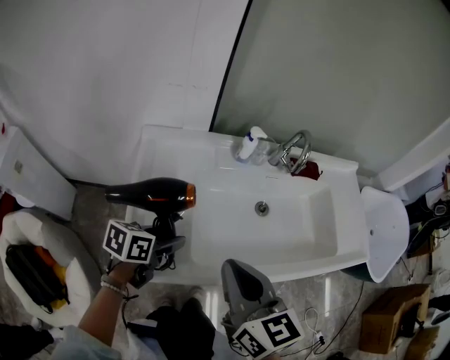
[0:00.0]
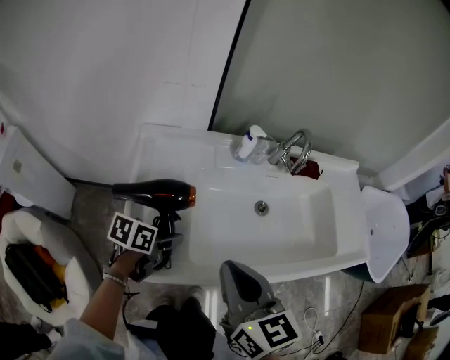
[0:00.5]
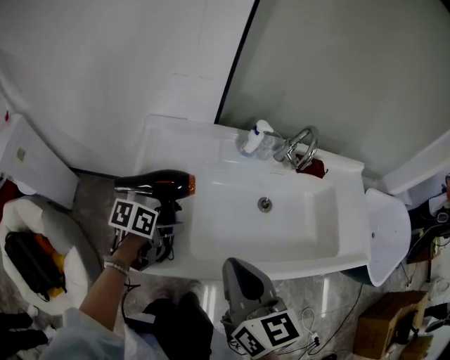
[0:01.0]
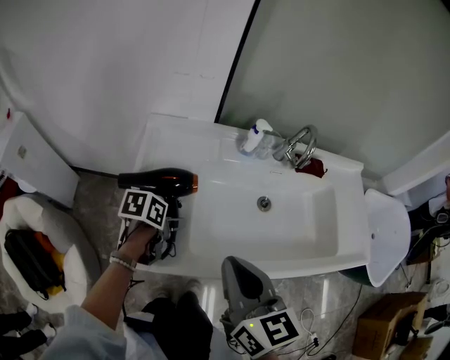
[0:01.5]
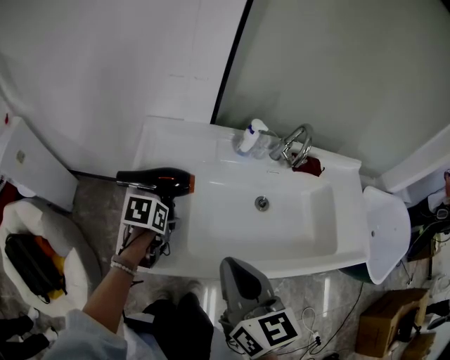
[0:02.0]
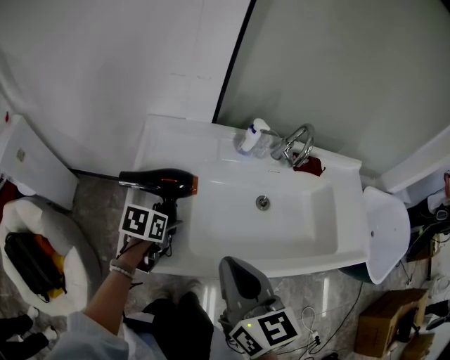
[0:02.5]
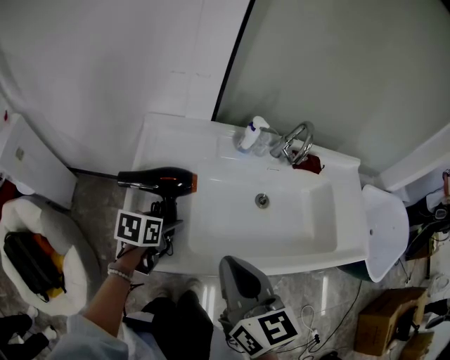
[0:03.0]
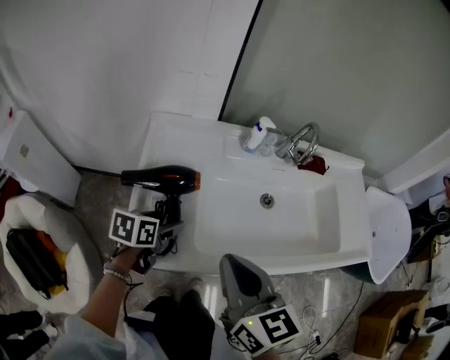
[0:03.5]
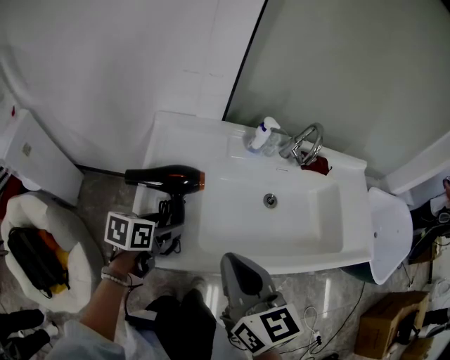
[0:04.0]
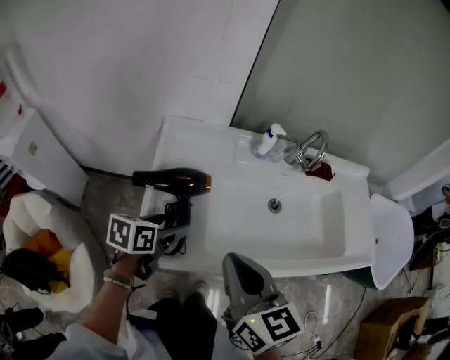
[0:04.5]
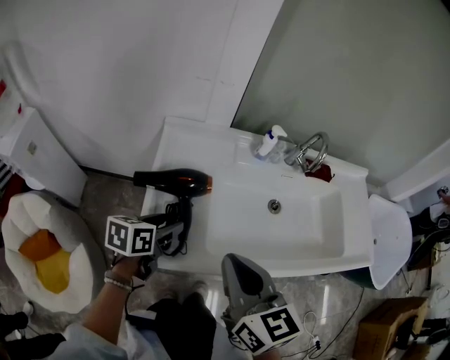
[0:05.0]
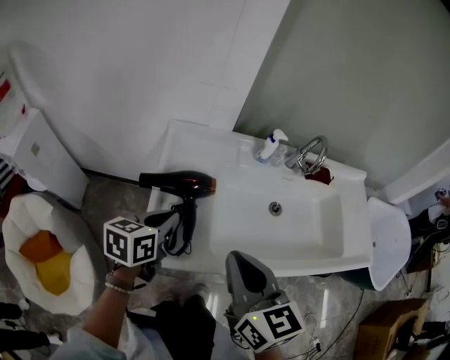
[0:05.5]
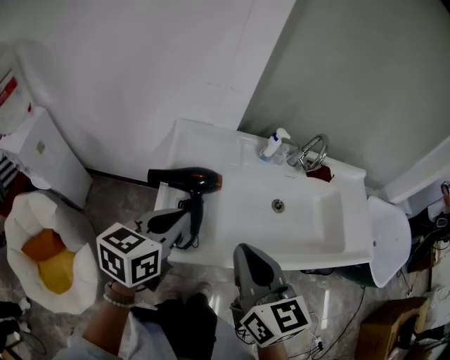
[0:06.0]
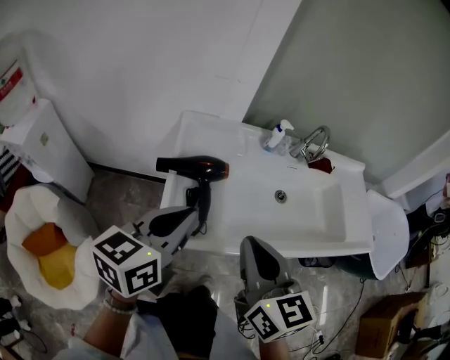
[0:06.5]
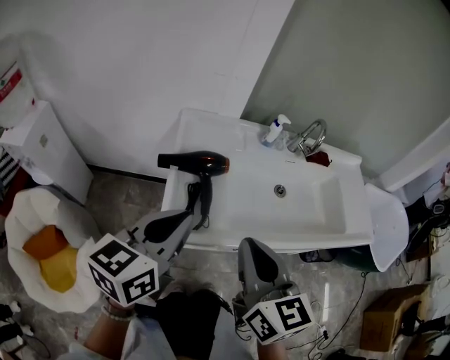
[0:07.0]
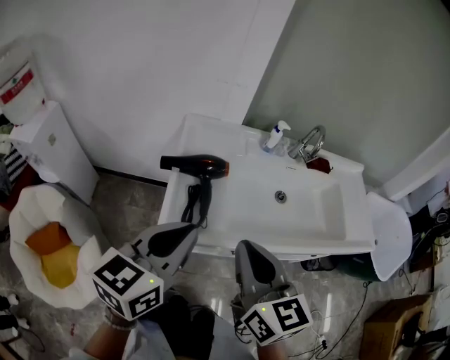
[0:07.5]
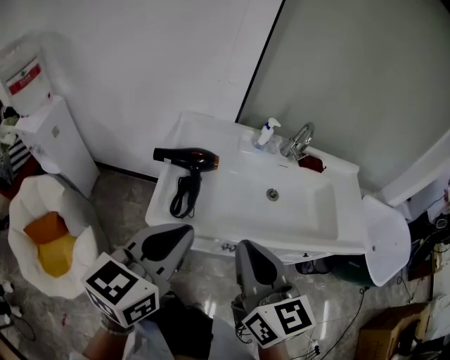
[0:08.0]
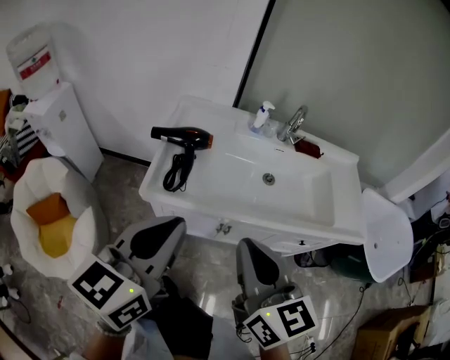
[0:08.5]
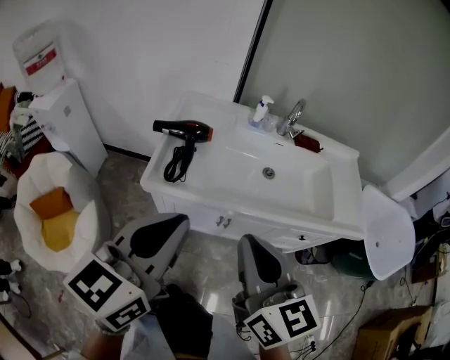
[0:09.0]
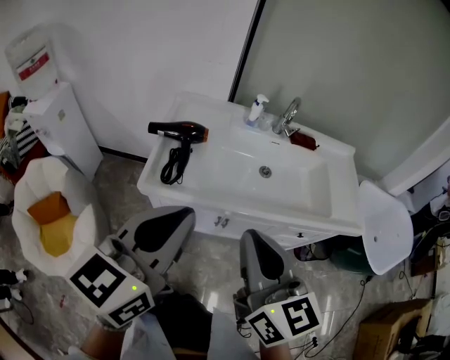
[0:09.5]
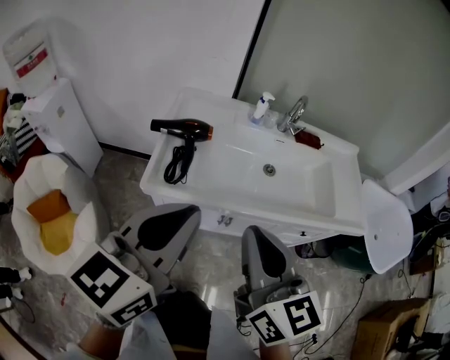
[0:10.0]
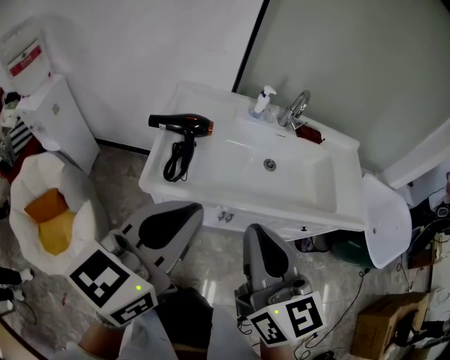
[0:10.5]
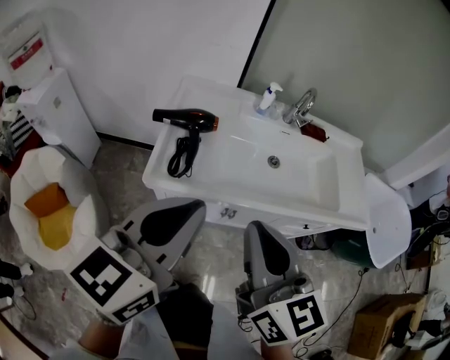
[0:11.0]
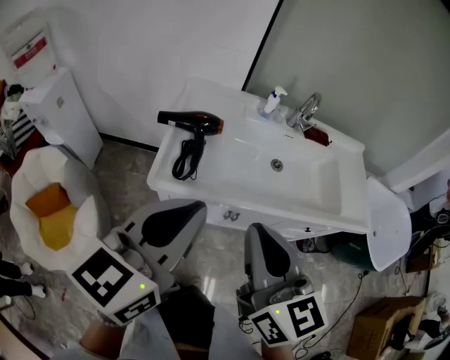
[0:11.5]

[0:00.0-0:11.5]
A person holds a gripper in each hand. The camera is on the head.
0:00.0 to 0:02.0: The left gripper goes approximately 5 cm downward, and changes its angle by roughly 30 degrees.
0:02.0 to 0:04.0: The left gripper ends up about 5 cm from where it was.
0:04.0 to 0:06.0: The left gripper heads upward, covering approximately 15 cm, turns by approximately 30 degrees, and closes up; the right gripper shifts by approximately 5 cm.
0:06.0 to 0:07.5: The left gripper goes approximately 15 cm backward and upward. The right gripper travels backward by some 5 cm.
0:07.5 to 0:09.5: The left gripper is displaced backward, to the right and upward by roughly 20 cm. The right gripper moves to the right and backward, some 15 cm.
0:09.5 to 0:11.5: The left gripper shifts by roughly 5 cm. Meanwhile the right gripper moves to the left, approximately 5 cm.

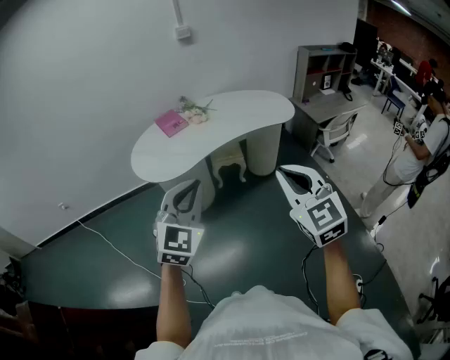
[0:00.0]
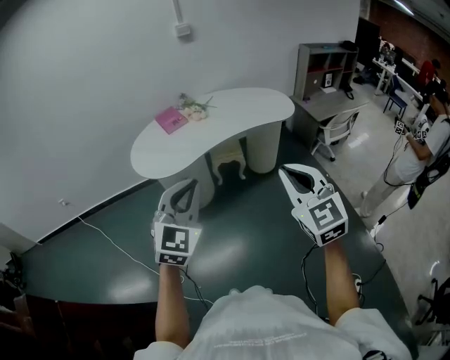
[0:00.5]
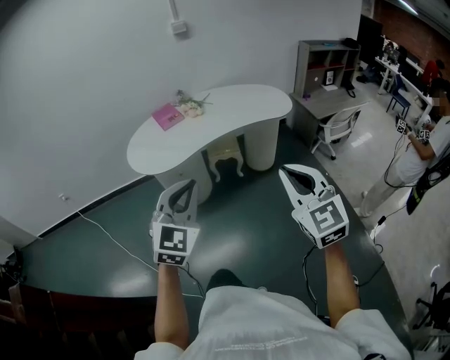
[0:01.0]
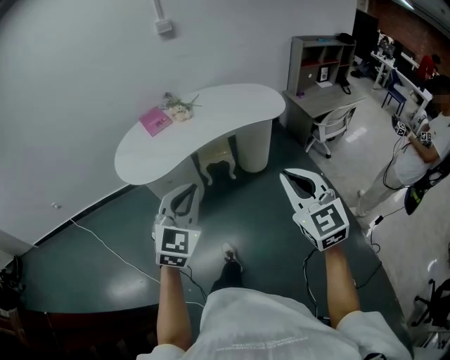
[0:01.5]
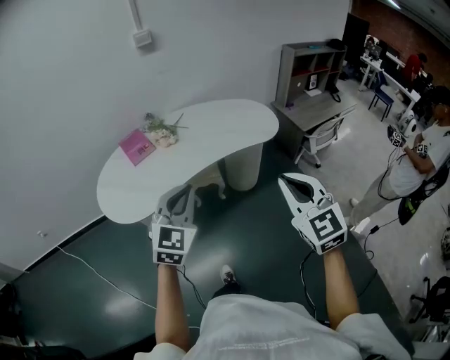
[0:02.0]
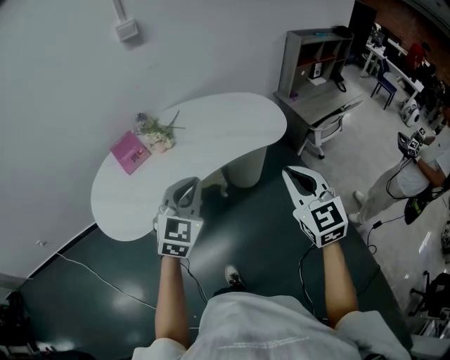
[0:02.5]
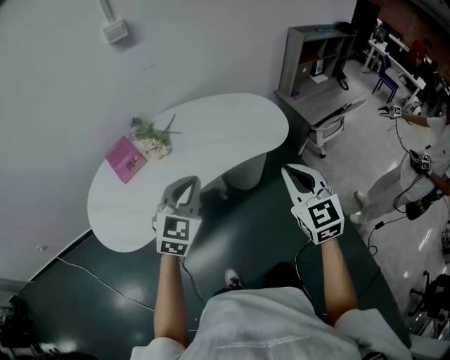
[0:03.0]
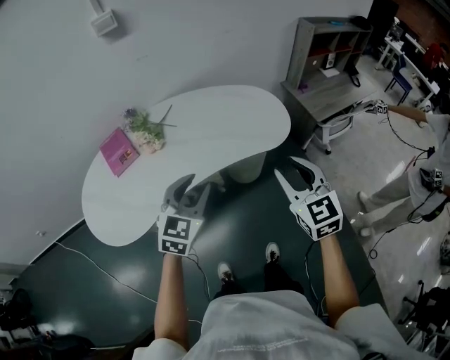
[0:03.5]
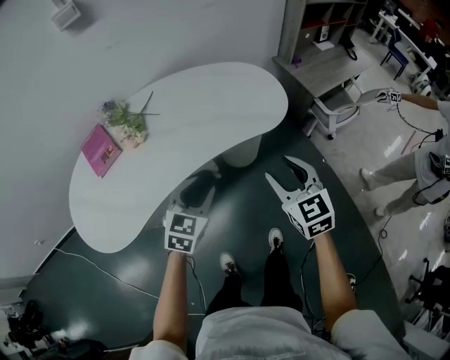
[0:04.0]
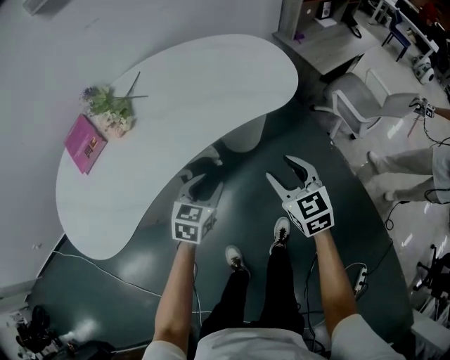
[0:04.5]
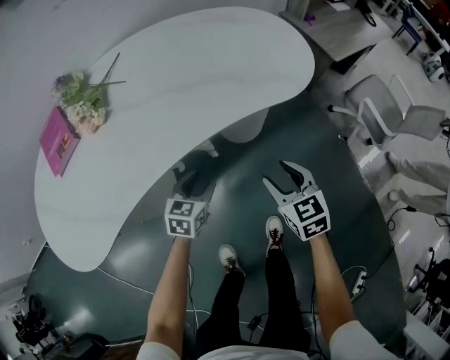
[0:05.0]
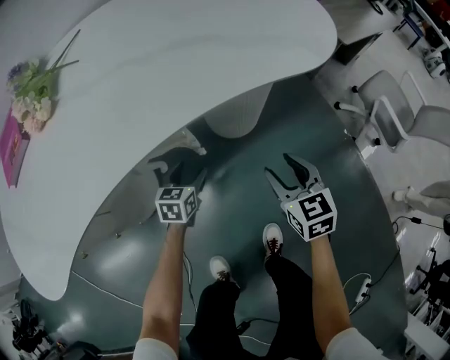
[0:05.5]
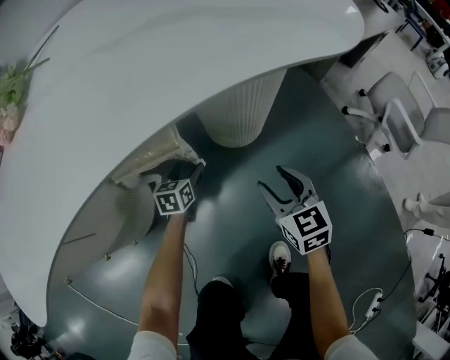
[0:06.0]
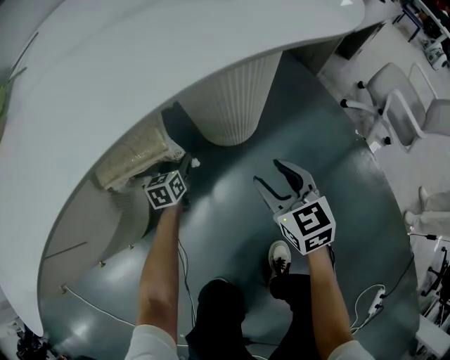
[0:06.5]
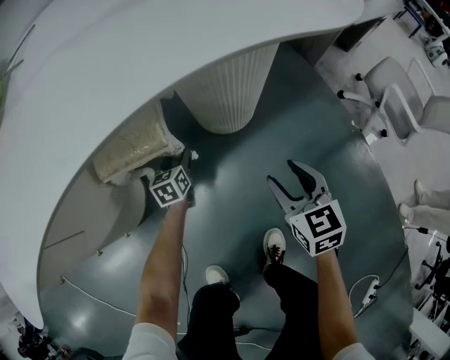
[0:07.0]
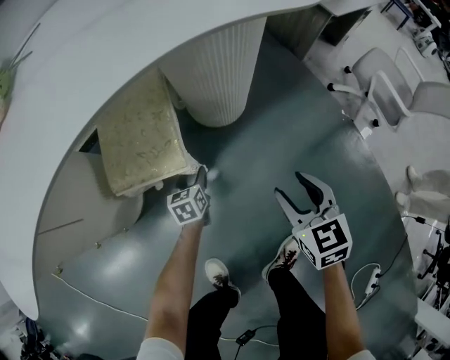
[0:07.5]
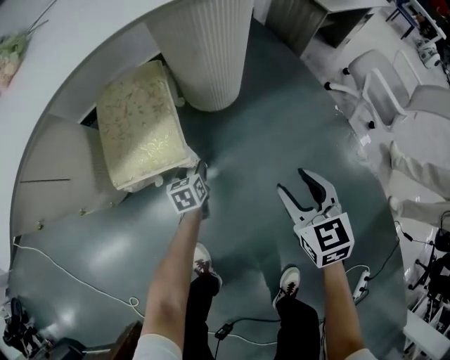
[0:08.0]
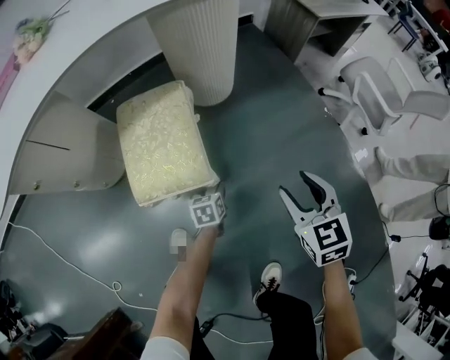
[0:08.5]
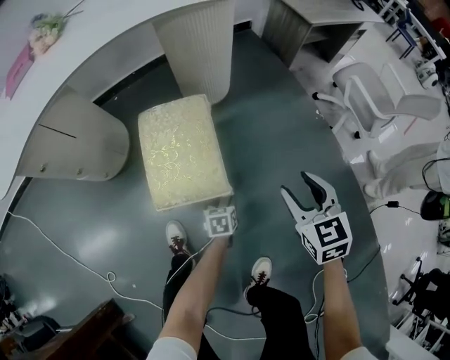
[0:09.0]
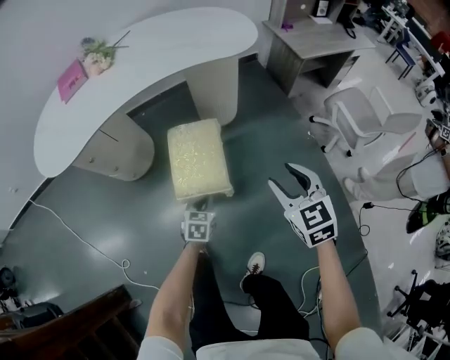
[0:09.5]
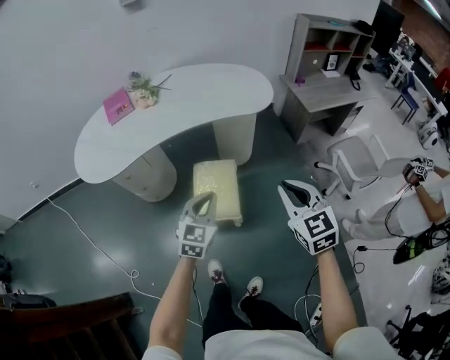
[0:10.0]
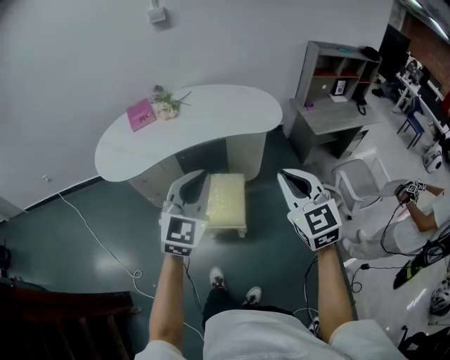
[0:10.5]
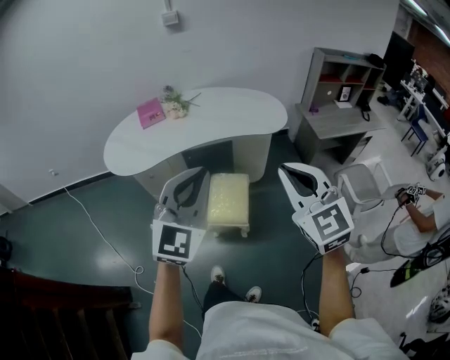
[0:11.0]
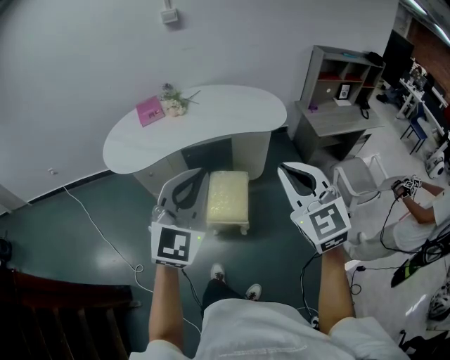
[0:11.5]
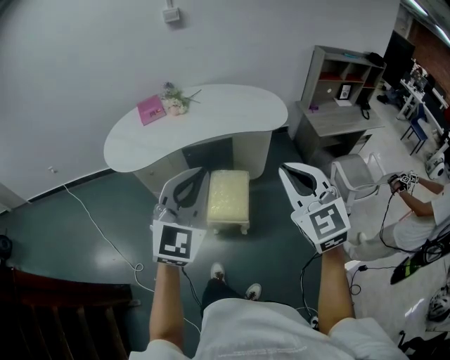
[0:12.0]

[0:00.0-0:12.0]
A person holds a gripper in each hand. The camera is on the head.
0:00.0 to 0:02.0: The right gripper travels forward and to the right by roughly 25 cm; the left gripper moves forward, about 25 cm.
0:02.0 to 0:04.0: Both grippers travel together forward and downward, approximately 35 cm. The left gripper swivels some 30 degrees, and opens its fingers. Meanwhile the right gripper turns by approximately 20 degrees, and opens up.
0:04.0 to 0:06.0: Both grippers travel together downward, roughly 60 cm. The left gripper turns by roughly 30 degrees, and opens.
0:06.0 to 0:08.0: The right gripper is displaced backward and to the right by some 20 cm. The left gripper goes approximately 20 cm backward.
0:08.0 to 0:10.0: The left gripper travels upward and backward by some 70 cm, turns by roughly 40 degrees, and closes its fingers. The right gripper is displaced upward by about 50 cm, turns by some 20 degrees, and closes its fingers.
0:10.0 to 0:12.0: Both grippers move upward, about 25 cm. The left gripper rotates roughly 30 degrees. The right gripper turns by about 20 degrees.

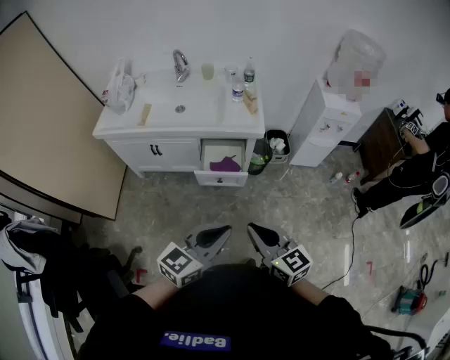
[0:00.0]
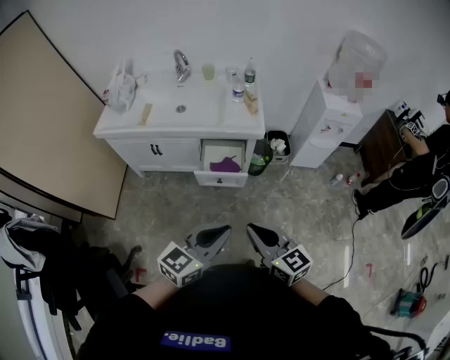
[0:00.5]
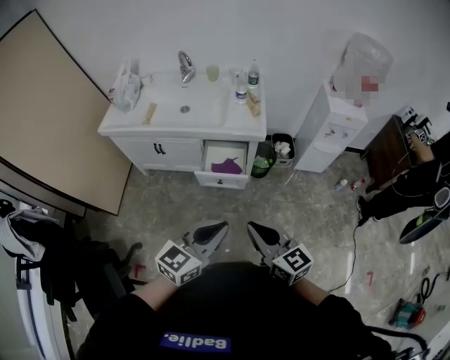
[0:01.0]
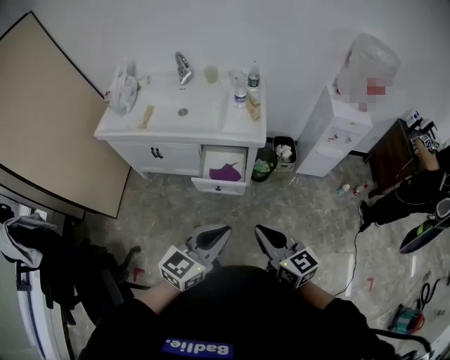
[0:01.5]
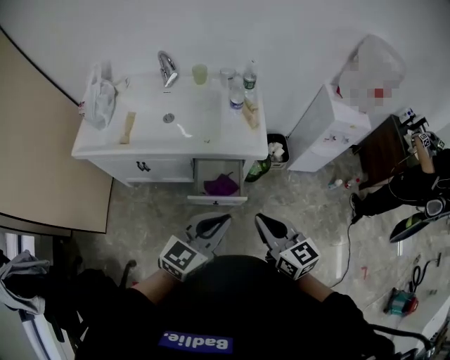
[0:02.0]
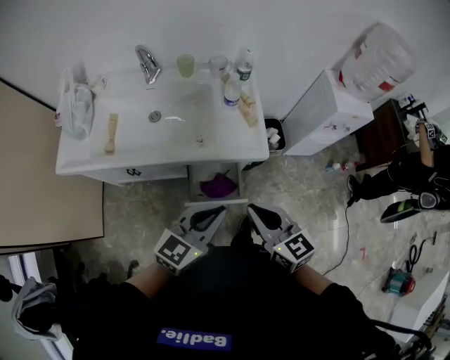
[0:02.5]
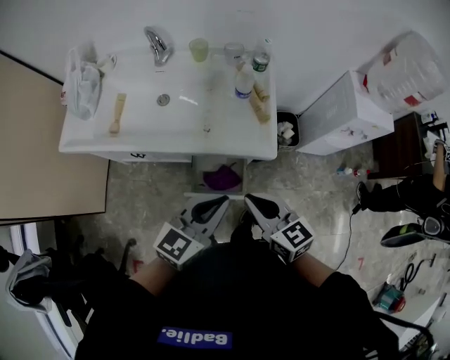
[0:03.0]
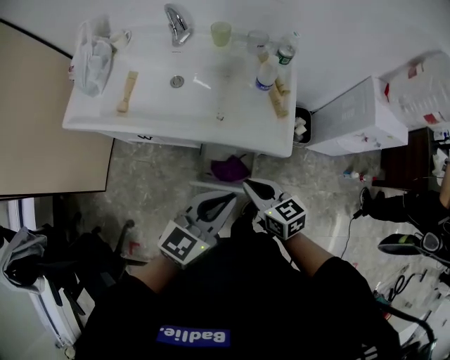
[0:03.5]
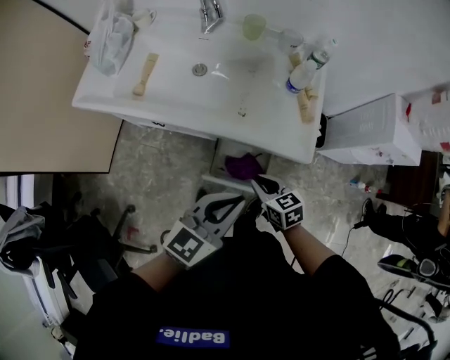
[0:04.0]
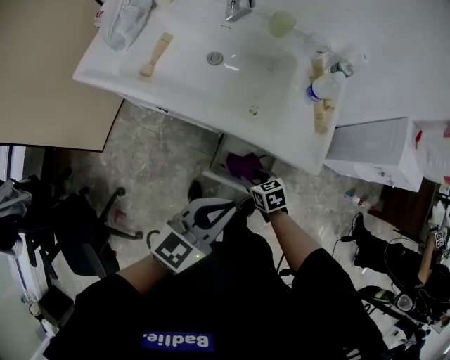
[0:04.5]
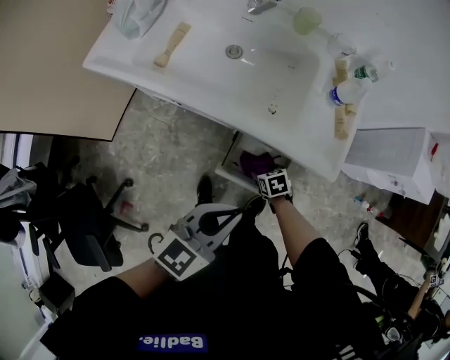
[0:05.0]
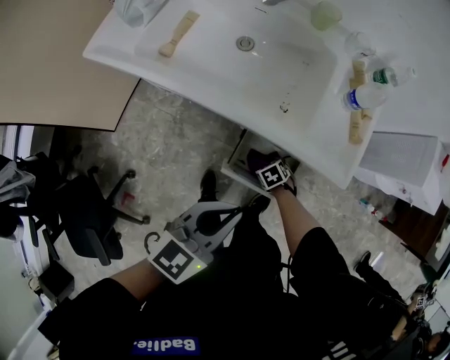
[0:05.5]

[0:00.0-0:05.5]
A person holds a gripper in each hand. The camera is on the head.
0:00.0 to 0:02.0: The two grippers go about 20 cm forward.
0:02.0 to 0:03.5: The right gripper travels forward and downward by roughly 20 cm, and changes its angle by some 20 degrees. Meanwhile the left gripper is displaced forward by roughly 15 cm.
0:03.5 to 0:05.5: The right gripper goes approximately 35 cm downward, points its fingers approximately 50 degrees further downward, and opens up. The left gripper shifts by roughly 15 cm.
